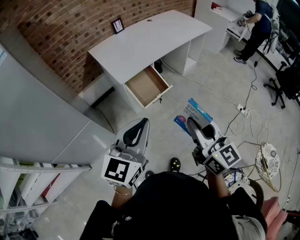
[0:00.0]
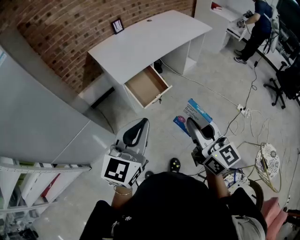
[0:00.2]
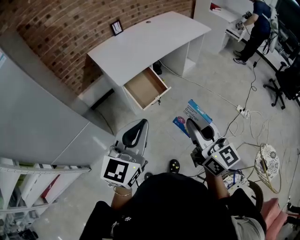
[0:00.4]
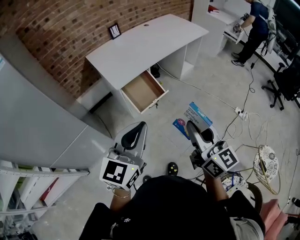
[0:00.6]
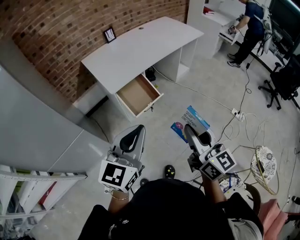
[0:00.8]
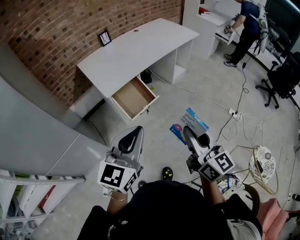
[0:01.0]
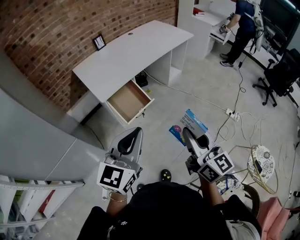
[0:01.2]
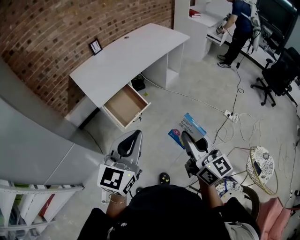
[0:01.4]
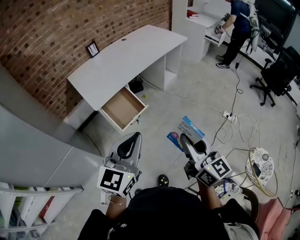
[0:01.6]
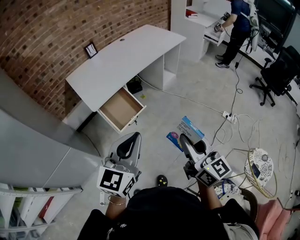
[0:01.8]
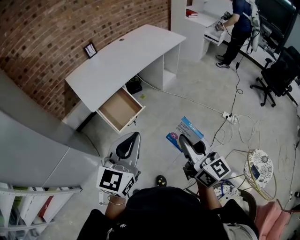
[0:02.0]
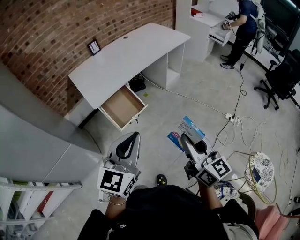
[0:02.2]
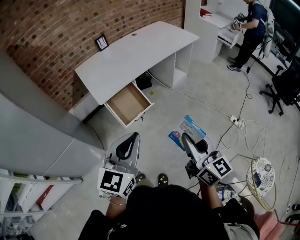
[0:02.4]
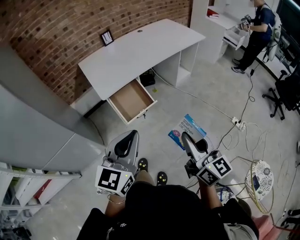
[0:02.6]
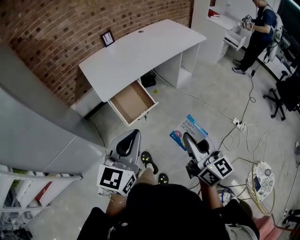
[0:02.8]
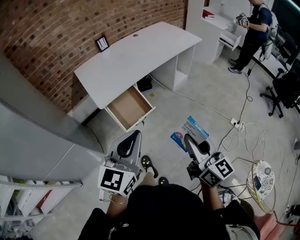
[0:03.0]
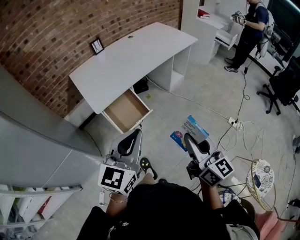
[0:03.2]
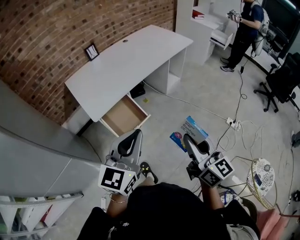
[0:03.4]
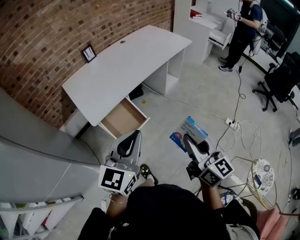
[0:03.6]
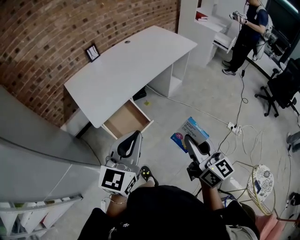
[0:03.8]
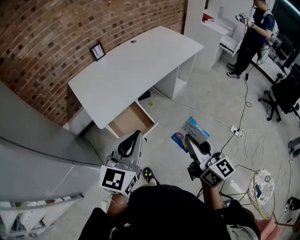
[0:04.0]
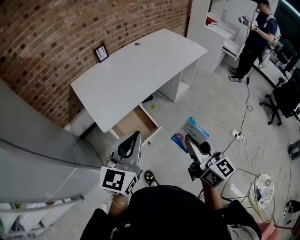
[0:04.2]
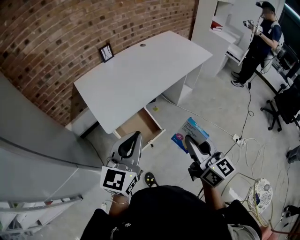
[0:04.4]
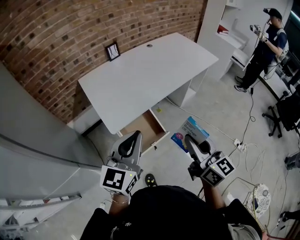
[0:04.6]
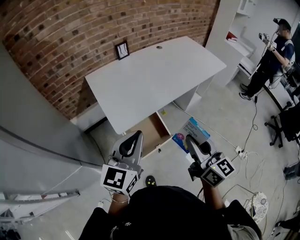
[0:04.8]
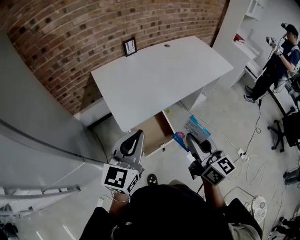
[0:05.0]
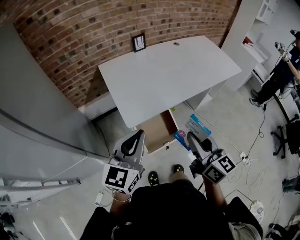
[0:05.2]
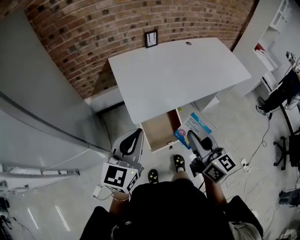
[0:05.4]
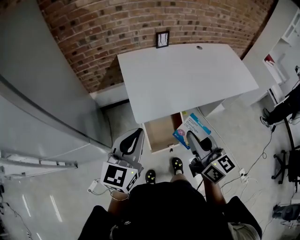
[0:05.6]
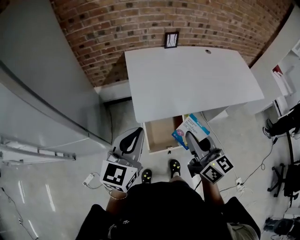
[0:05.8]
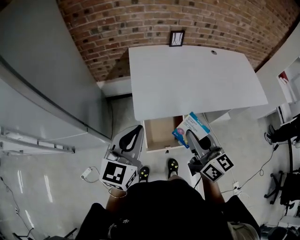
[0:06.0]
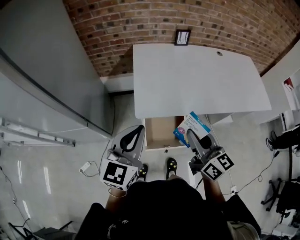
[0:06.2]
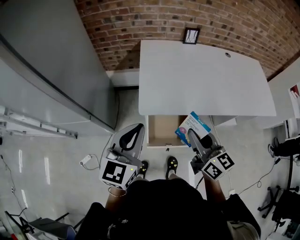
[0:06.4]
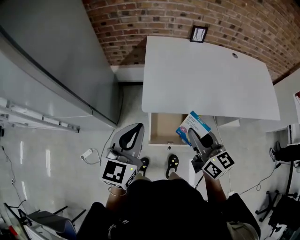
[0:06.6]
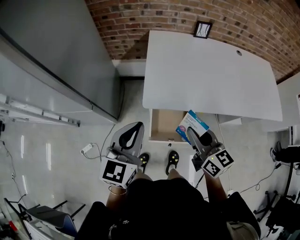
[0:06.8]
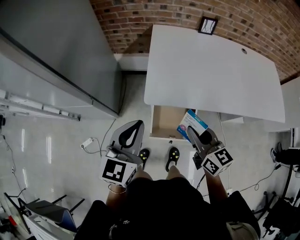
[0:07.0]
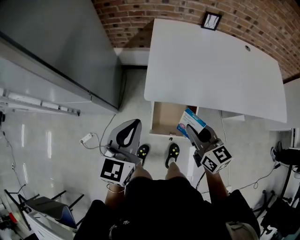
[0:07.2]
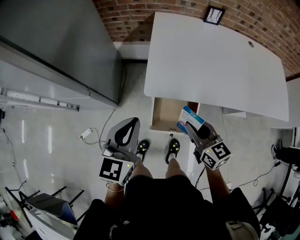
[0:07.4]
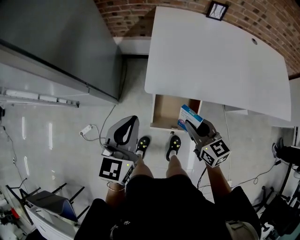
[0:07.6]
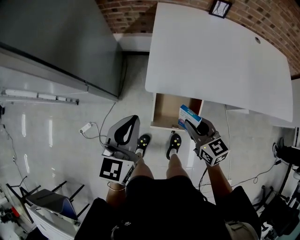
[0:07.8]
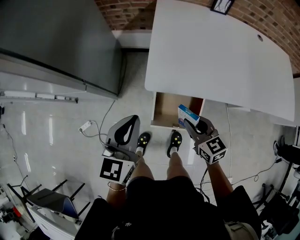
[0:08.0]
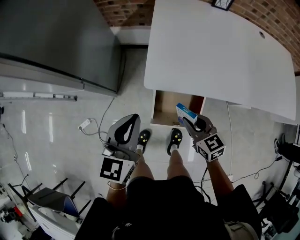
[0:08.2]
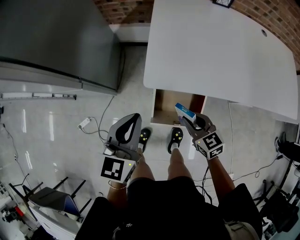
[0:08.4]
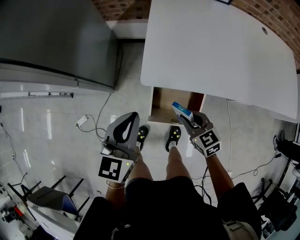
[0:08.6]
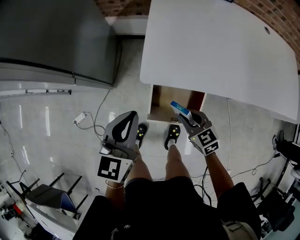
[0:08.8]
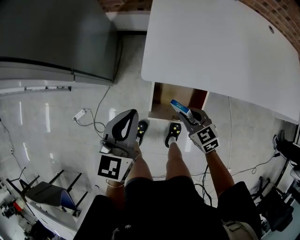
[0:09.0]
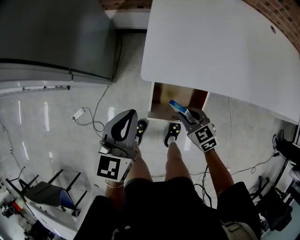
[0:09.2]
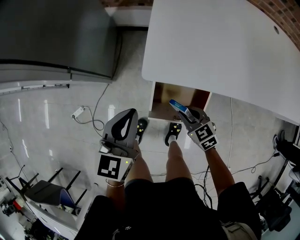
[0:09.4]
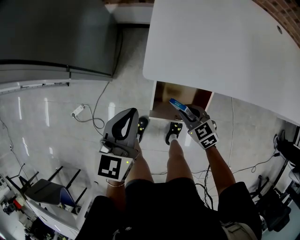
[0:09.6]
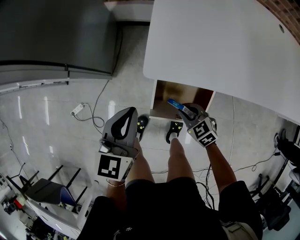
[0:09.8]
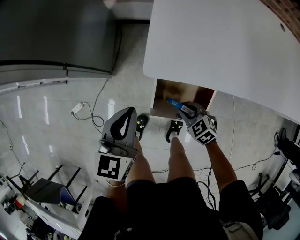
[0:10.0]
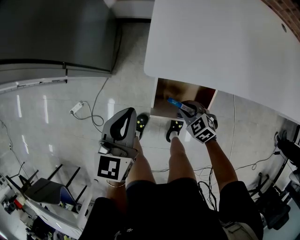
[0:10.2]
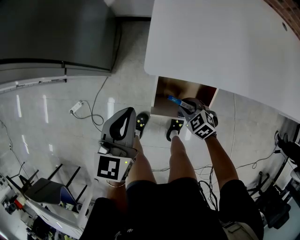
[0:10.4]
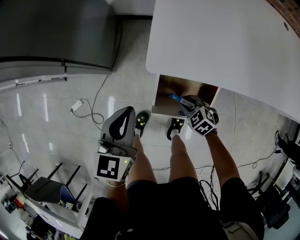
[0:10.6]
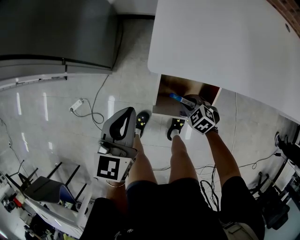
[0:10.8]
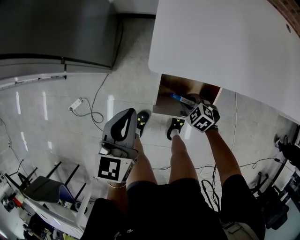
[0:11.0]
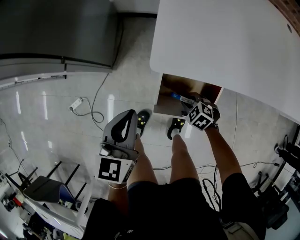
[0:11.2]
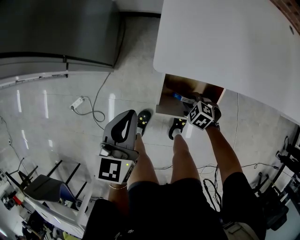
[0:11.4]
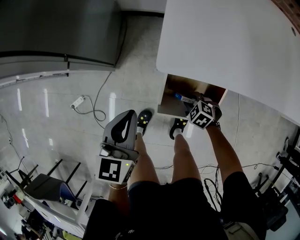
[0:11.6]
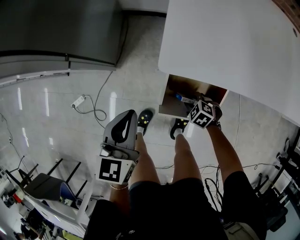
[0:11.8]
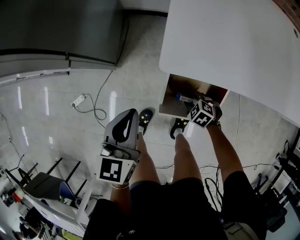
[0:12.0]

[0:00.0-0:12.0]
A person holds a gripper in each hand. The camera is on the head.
0:00.0 to 0:01.6: The two grippers go some 15 cm to the right.
0:01.6 to 0:03.0: Both grippers travel together forward, approximately 5 cm.
0:03.0 to 0:04.4: The grippers both shift forward and to the left by roughly 20 cm.
0:04.4 to 0:06.0: The right gripper shifts by roughly 20 cm, and turns by about 30 degrees. The left gripper ends up some 15 cm from where it was, and swivels roughly 30 degrees.
0:06.0 to 0:07.6: The right gripper moves downward, roughly 20 cm, and swivels some 30 degrees, while the left gripper goes some 10 cm downward, and turns by some 20 degrees.
0:07.6 to 0:09.0: The left gripper goes about 10 cm downward; the right gripper travels downward by some 15 cm, and rotates about 20 degrees.
0:09.0 to 0:10.4: The right gripper shifts approximately 15 cm downward, and swivels approximately 20 degrees, while the left gripper heads downward, covering approximately 5 cm.
0:10.4 to 0:12.0: The right gripper heads downward, covering roughly 10 cm.

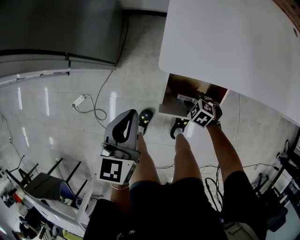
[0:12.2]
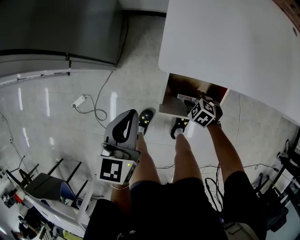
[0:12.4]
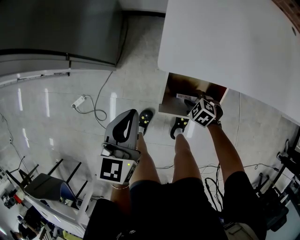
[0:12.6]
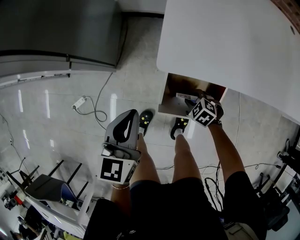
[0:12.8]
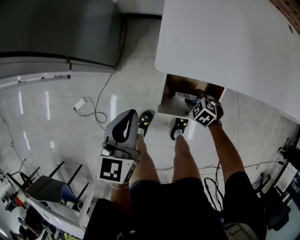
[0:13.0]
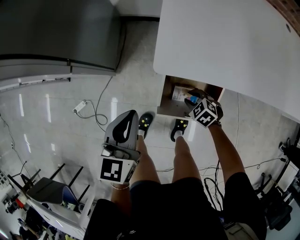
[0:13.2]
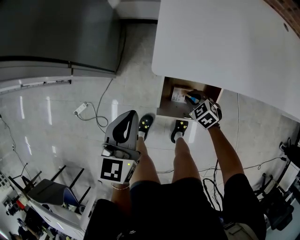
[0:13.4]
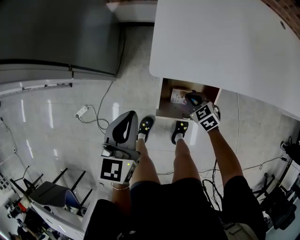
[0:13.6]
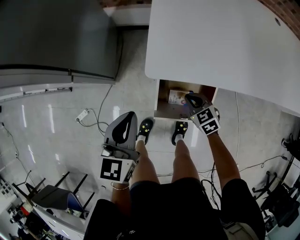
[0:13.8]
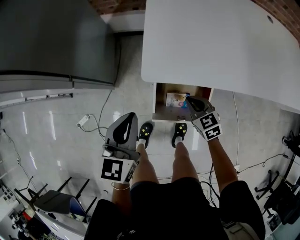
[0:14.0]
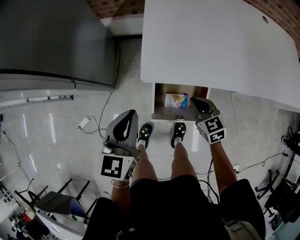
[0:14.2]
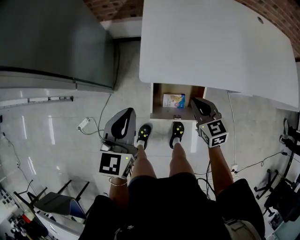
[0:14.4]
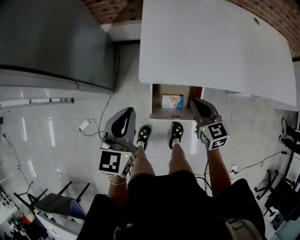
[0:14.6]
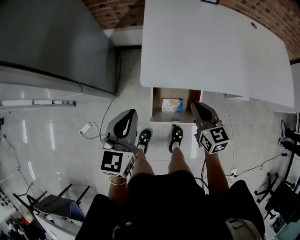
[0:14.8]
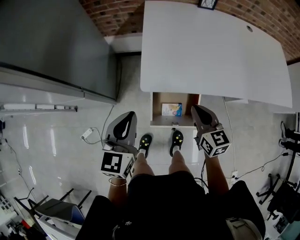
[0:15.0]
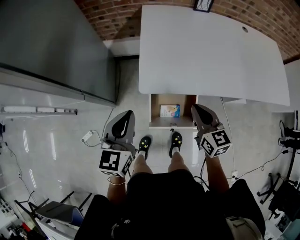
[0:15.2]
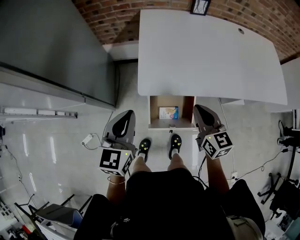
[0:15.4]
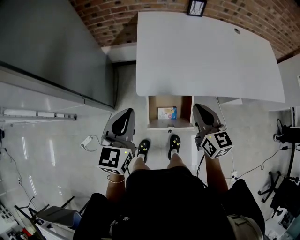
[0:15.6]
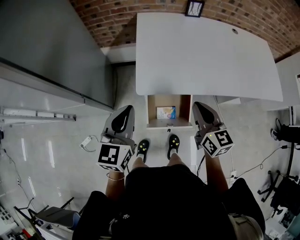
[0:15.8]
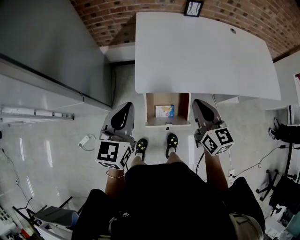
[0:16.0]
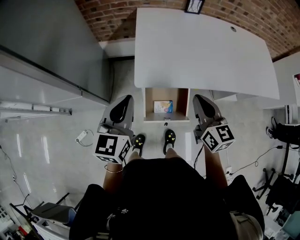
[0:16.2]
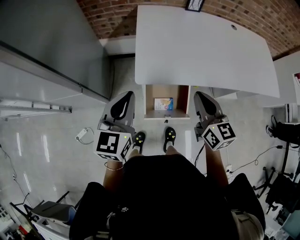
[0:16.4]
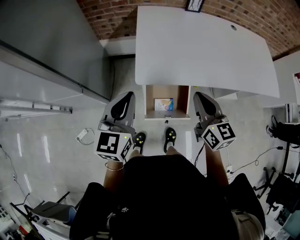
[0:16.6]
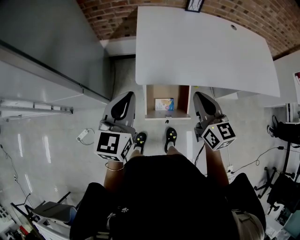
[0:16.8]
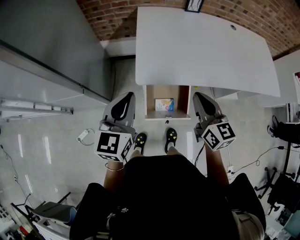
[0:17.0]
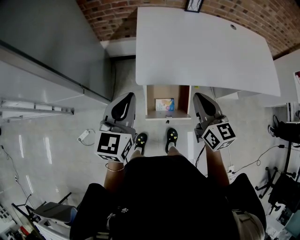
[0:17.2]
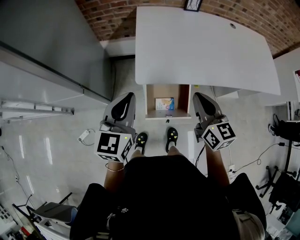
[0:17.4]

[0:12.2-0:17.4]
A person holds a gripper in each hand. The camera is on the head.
0:12.2 to 0:14.0: The right gripper moves upward, about 15 cm, rotates approximately 40 degrees, and closes up. The left gripper is displaced upward by about 5 cm.
0:14.0 to 0:15.6: The left gripper shifts approximately 15 cm upward. The right gripper goes some 25 cm upward, and swivels about 40 degrees.
0:15.6 to 0:17.4: The right gripper changes place by roughly 5 cm.

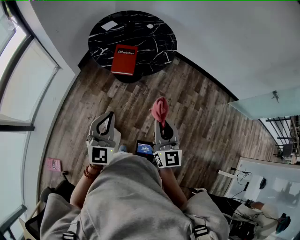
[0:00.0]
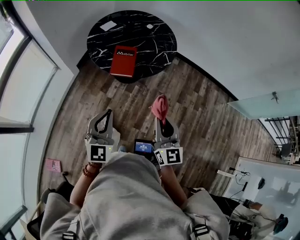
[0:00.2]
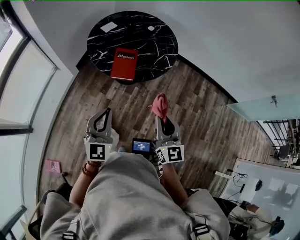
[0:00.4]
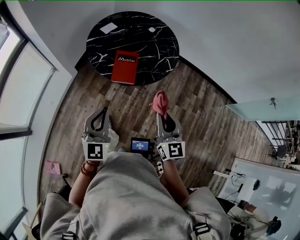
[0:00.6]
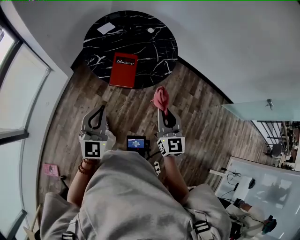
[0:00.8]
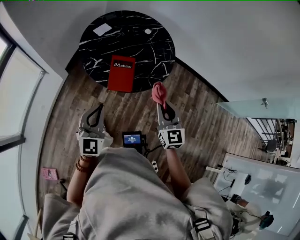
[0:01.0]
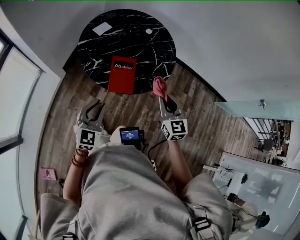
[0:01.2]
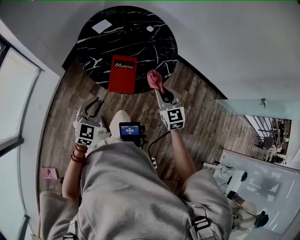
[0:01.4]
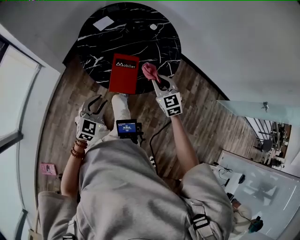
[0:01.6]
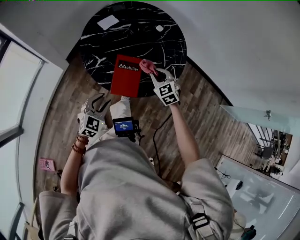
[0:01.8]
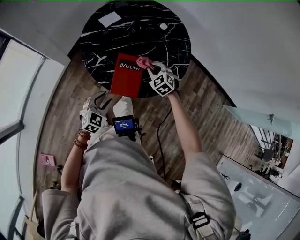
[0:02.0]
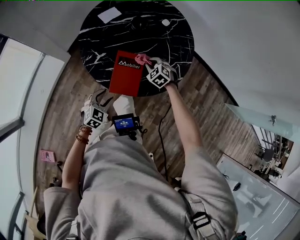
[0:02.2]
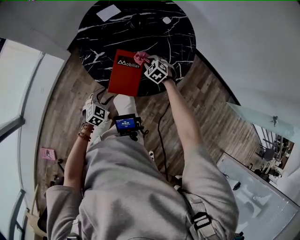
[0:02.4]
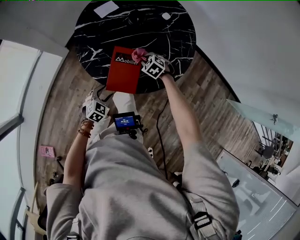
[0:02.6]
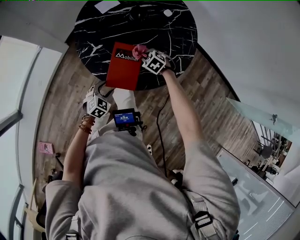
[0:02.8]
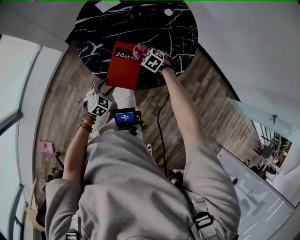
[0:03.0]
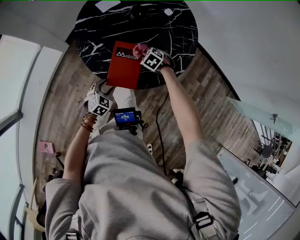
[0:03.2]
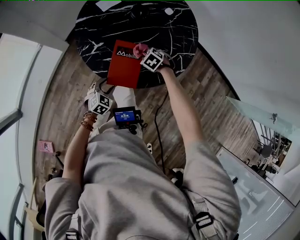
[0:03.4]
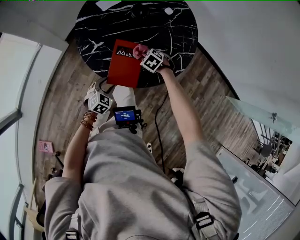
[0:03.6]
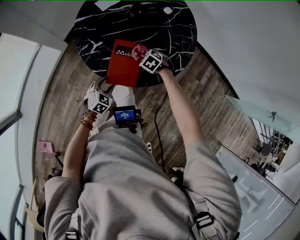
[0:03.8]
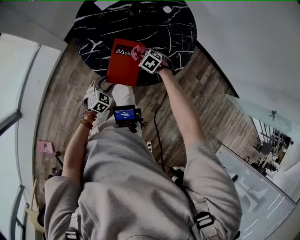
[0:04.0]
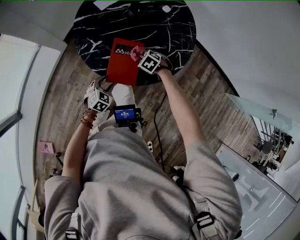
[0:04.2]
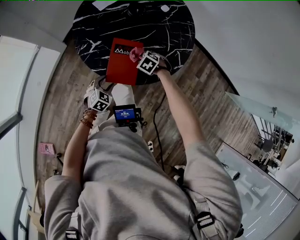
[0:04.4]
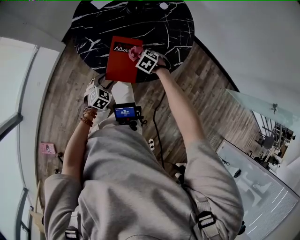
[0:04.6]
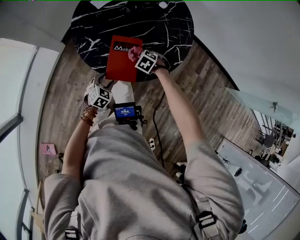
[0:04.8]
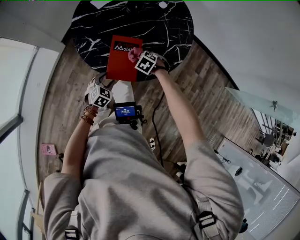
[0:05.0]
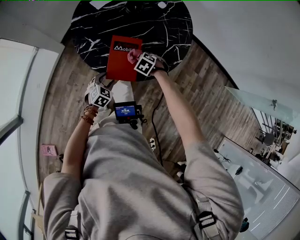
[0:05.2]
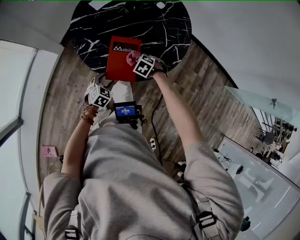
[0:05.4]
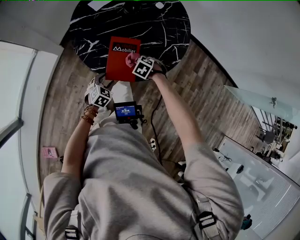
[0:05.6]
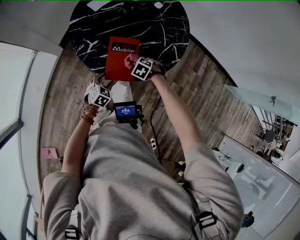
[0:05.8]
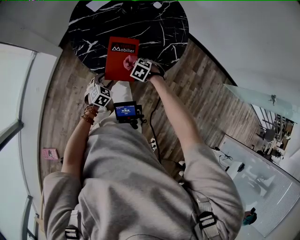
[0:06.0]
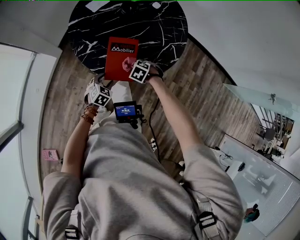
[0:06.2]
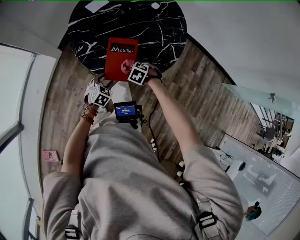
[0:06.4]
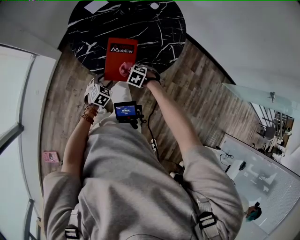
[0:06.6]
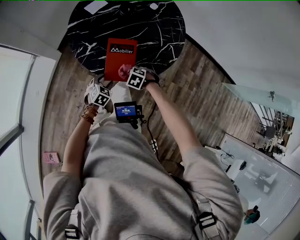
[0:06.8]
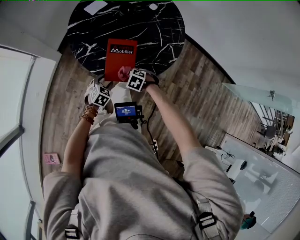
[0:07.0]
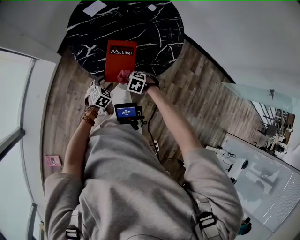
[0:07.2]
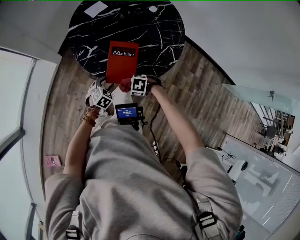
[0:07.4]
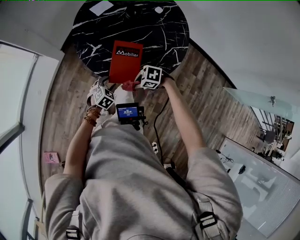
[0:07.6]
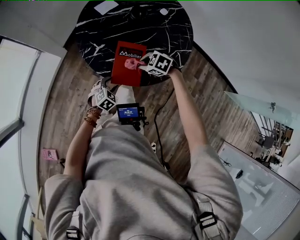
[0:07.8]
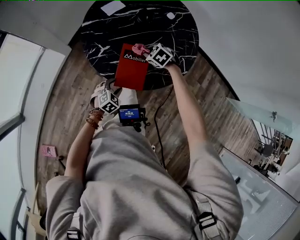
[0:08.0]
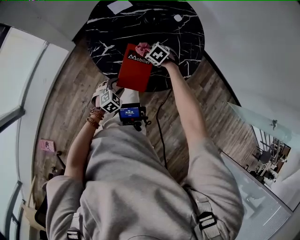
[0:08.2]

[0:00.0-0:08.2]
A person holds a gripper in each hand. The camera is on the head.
0:00.0 to 0:01.6: The left gripper travels forward and downward by about 35 cm, turns by about 20 degrees, and opens. Meanwhile the right gripper moves forward, some 40 cm, and tips its fingers downward by some 30 degrees.
0:01.6 to 0:03.2: The grippers both shift downward by about 25 cm. The left gripper changes its angle by approximately 20 degrees, and opens. The right gripper tilts its fingers roughly 40 degrees downward.
0:03.2 to 0:05.0: The right gripper shifts by some 5 cm.
0:05.0 to 0:06.6: The right gripper ends up approximately 10 cm from where it was.
0:06.6 to 0:08.2: The right gripper goes upward and returns, some 10 cm each way.
